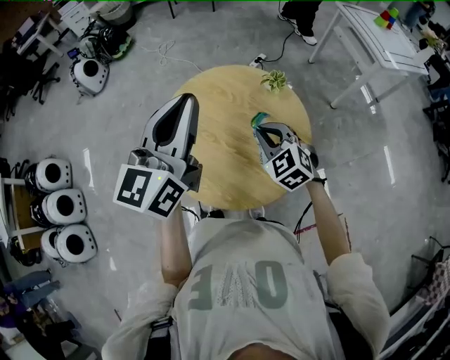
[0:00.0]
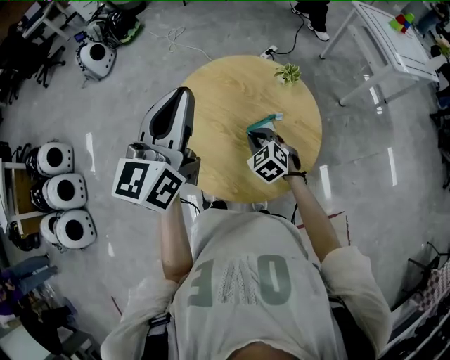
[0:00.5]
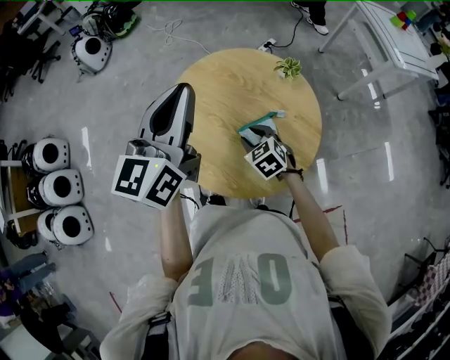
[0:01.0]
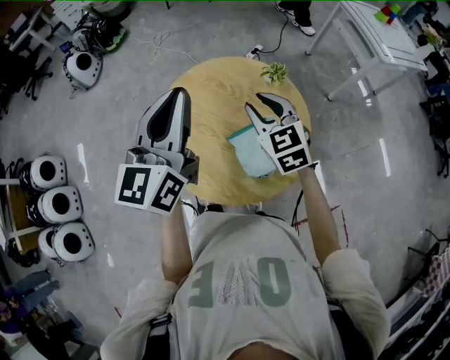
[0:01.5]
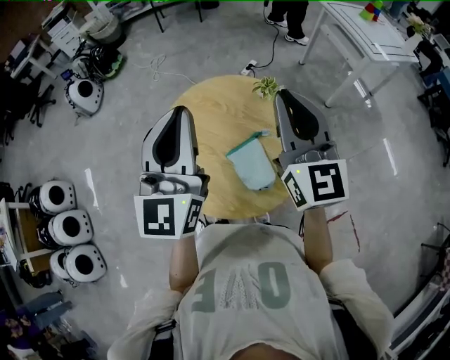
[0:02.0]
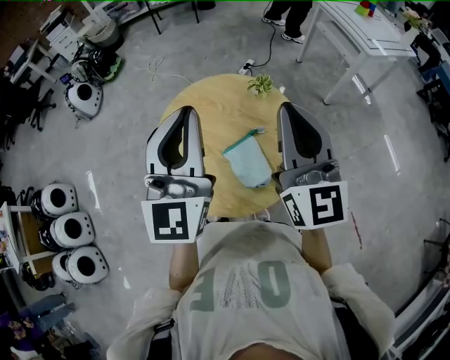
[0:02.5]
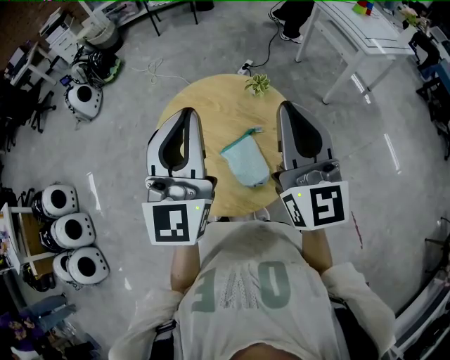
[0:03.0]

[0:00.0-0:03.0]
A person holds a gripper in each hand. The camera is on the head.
0:00.0 to 0:01.5: The right gripper shifts about 5 cm forward, travels downward and back again, approximately 15 cm each way, changes its angle by roughly 20 degrees, and opens up.
0:01.5 to 0:03.0: The left gripper goes some 10 cm to the right and upward, and changes its angle by roughly 20 degrees. Meanwhile the right gripper is displaced upward, backward and to the right by about 25 cm, tips its fingers upward by some 40 degrees, and closes.

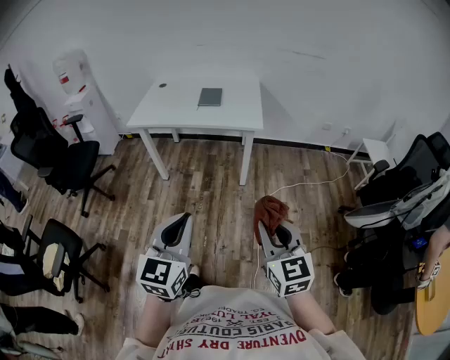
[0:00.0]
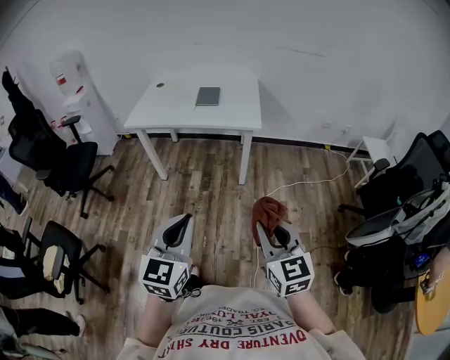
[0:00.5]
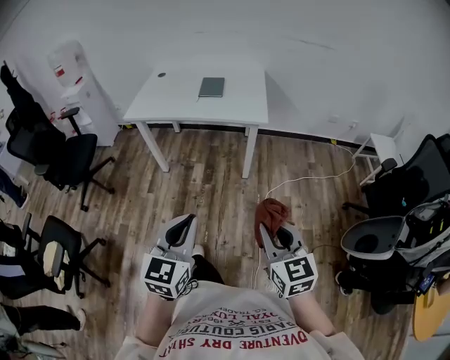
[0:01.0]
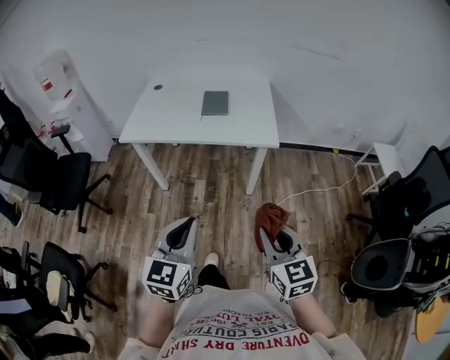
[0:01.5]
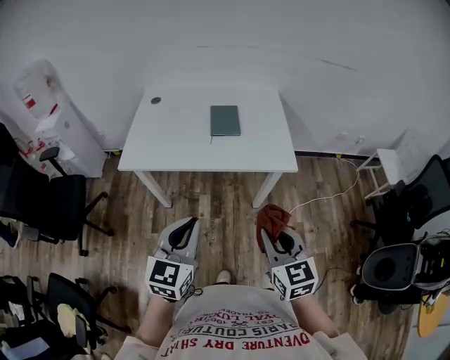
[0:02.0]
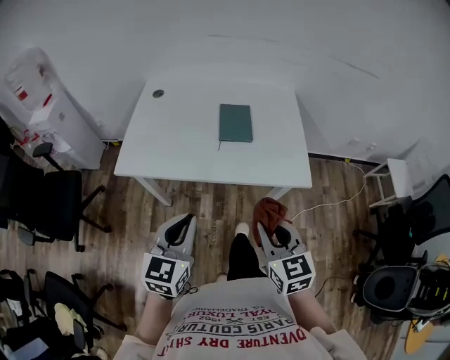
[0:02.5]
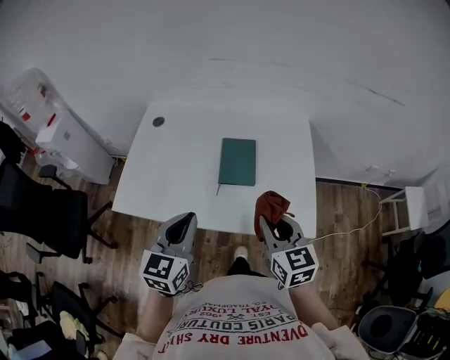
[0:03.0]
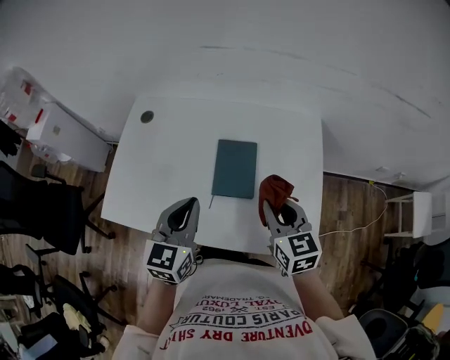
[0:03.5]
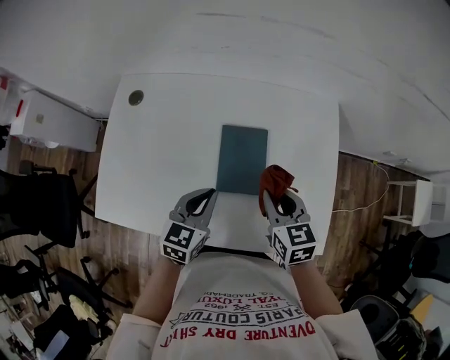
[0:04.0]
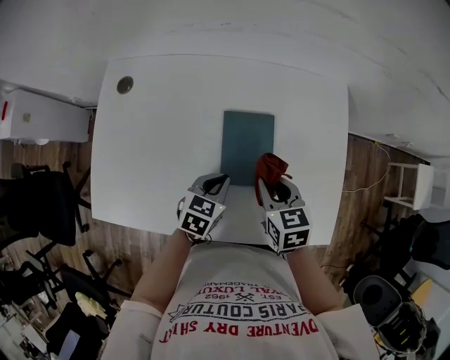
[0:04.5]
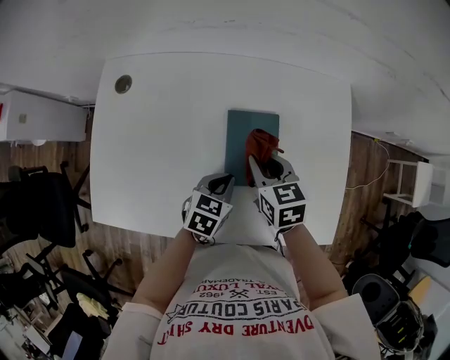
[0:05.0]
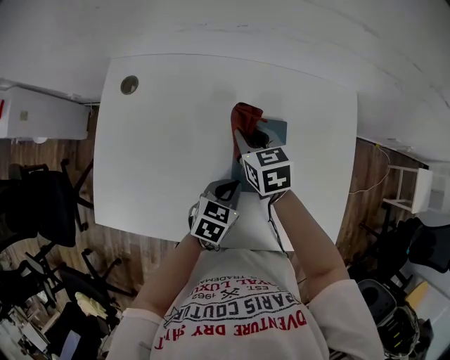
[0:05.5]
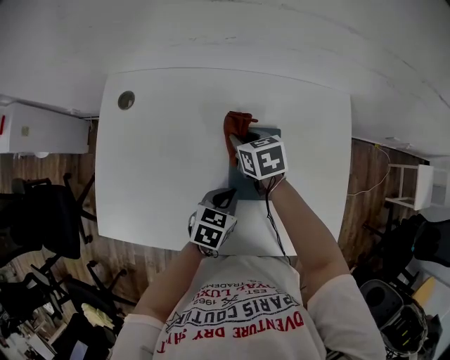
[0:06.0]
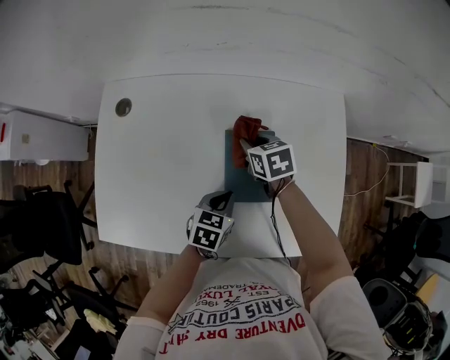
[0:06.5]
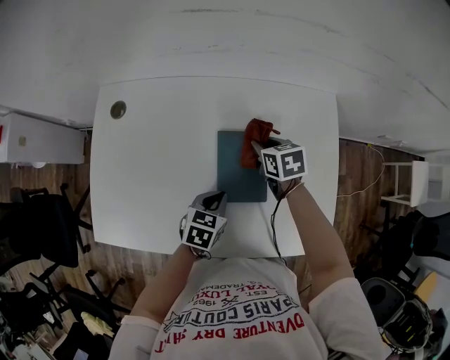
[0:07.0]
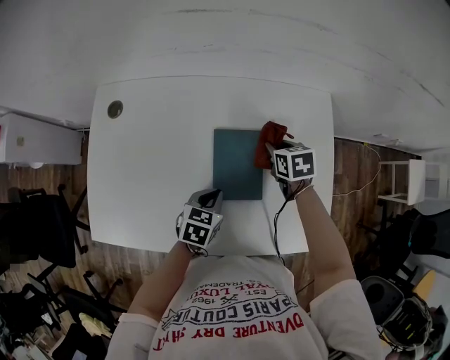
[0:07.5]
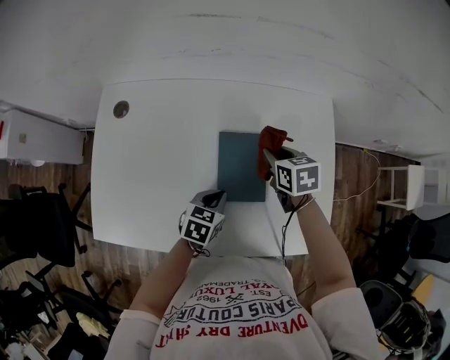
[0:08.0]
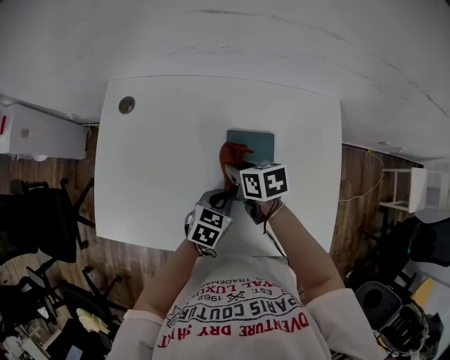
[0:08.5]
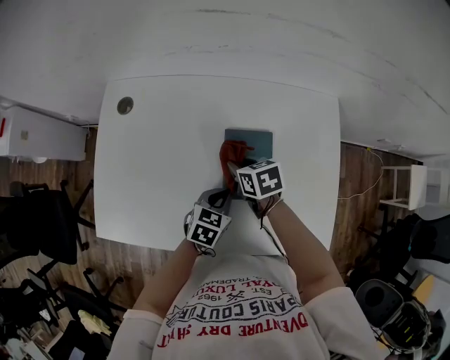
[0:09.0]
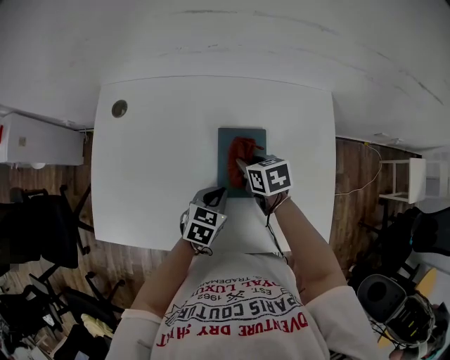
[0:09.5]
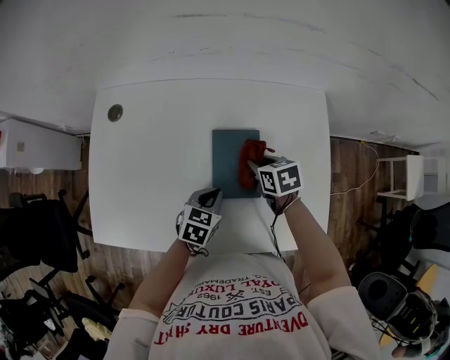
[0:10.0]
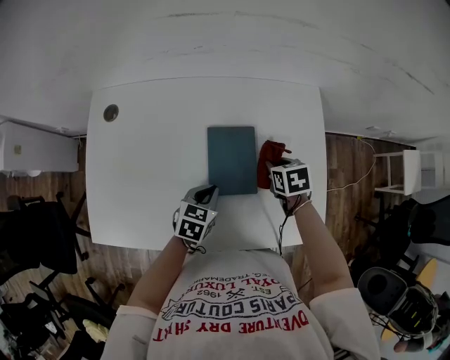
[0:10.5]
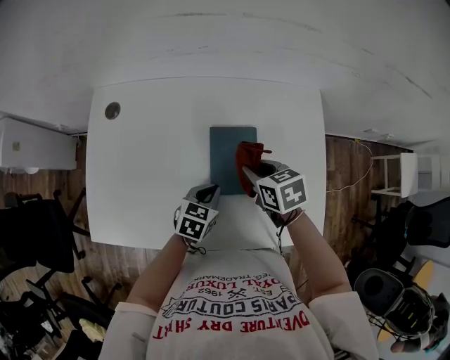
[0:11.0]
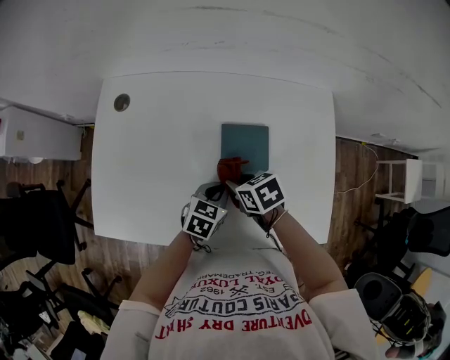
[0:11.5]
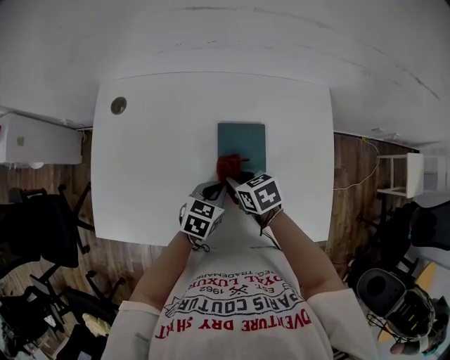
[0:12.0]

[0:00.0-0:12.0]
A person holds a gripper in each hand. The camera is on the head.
0:00.0 to 0:02.0: The two grippers travel together, forward and to the left, approximately 40 cm.
0:02.0 to 0:04.0: Both grippers are carried forward, approximately 50 cm.
0:04.0 to 0:06.0: The left gripper is displaced downward by about 10 cm, and changes its angle by approximately 20 degrees, while the right gripper moves forward, to the left and downward, about 25 cm.
0:06.0 to 0:08.0: The right gripper goes approximately 15 cm to the right.
0:08.0 to 0:10.0: The right gripper reaches roughly 15 cm to the left, then returns.
0:10.0 to 0:12.0: The right gripper goes about 10 cm to the left and backward.

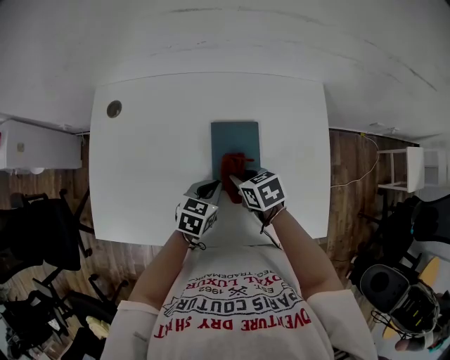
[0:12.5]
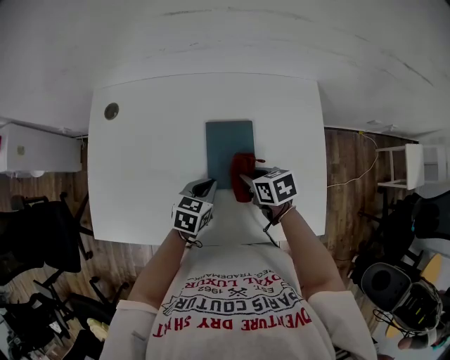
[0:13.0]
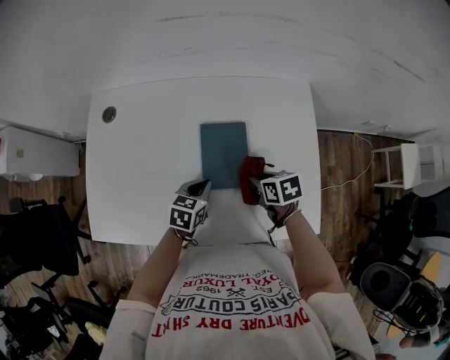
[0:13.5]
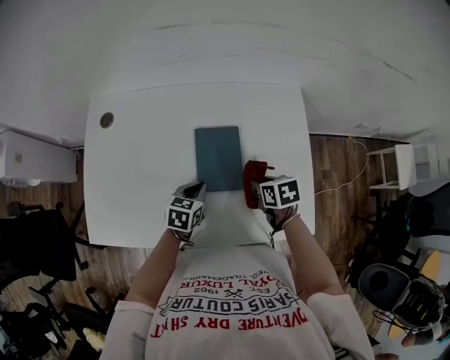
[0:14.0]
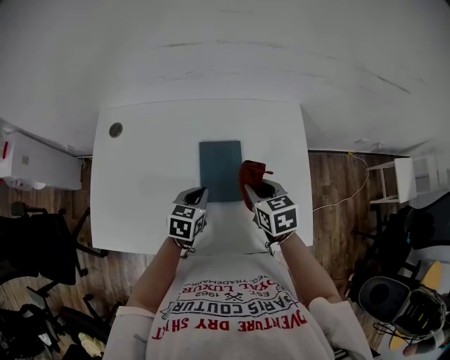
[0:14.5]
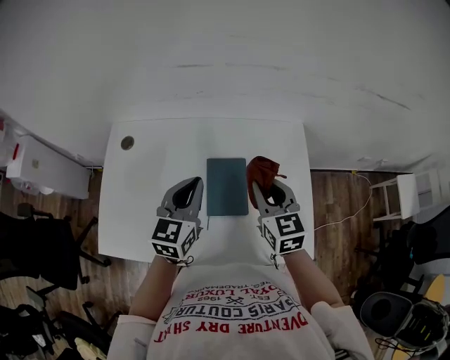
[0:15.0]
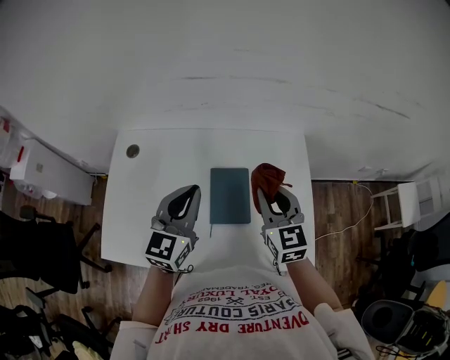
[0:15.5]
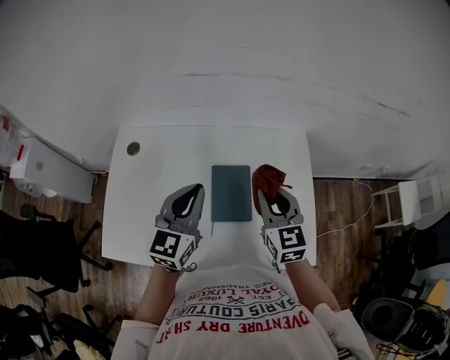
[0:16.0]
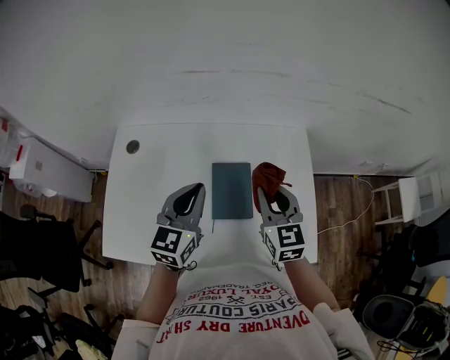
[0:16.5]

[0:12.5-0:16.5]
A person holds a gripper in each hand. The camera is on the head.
0:12.5 to 0:14.5: The right gripper moves upward and to the right, some 15 cm, and swivels some 20 degrees.
0:14.5 to 0:16.5: The right gripper is displaced upward by about 15 cm, and changes its angle by some 30 degrees. Meanwhile the left gripper is displaced upward by about 20 cm, and turns by about 30 degrees.

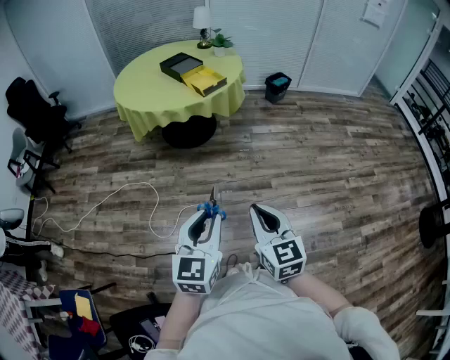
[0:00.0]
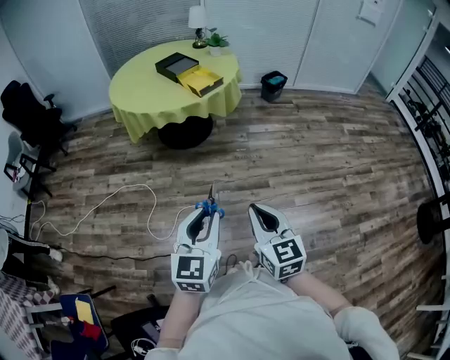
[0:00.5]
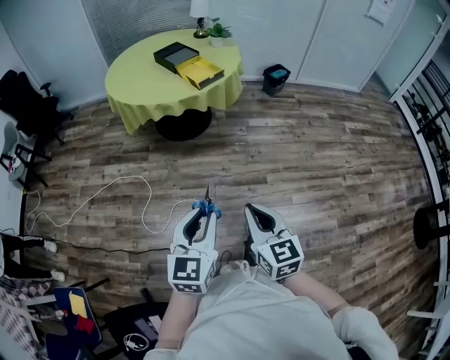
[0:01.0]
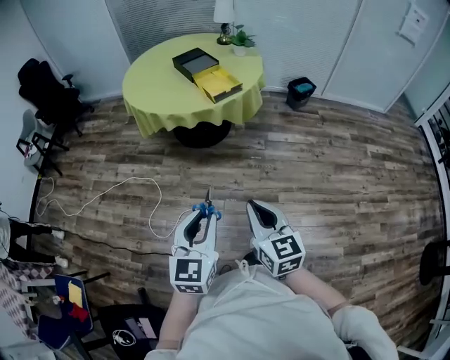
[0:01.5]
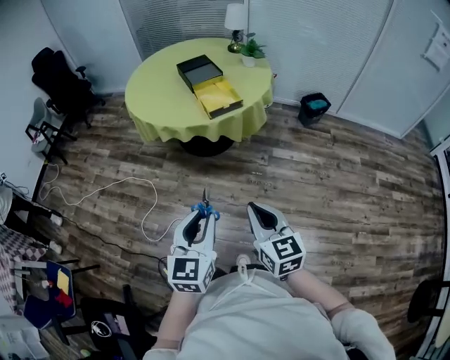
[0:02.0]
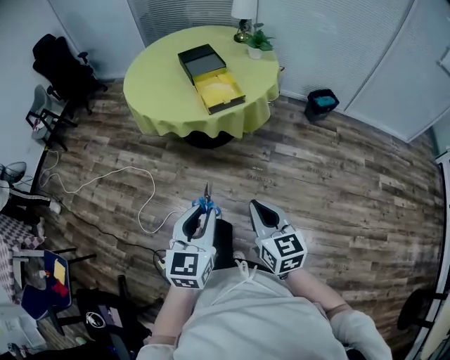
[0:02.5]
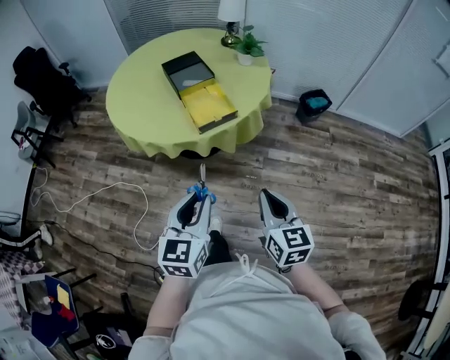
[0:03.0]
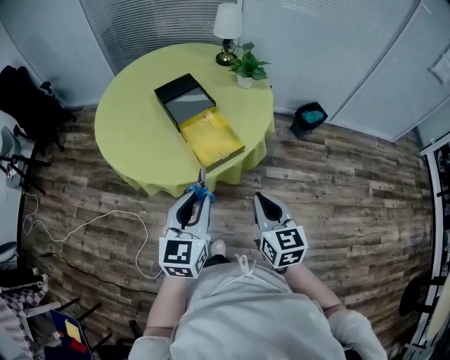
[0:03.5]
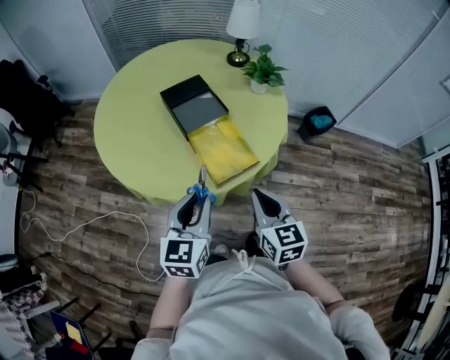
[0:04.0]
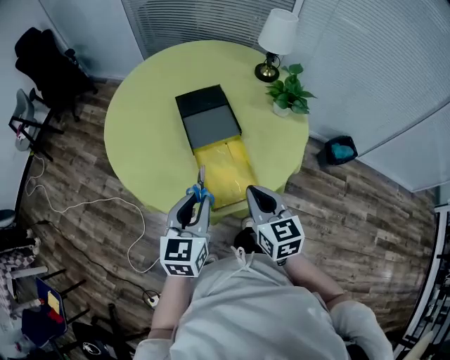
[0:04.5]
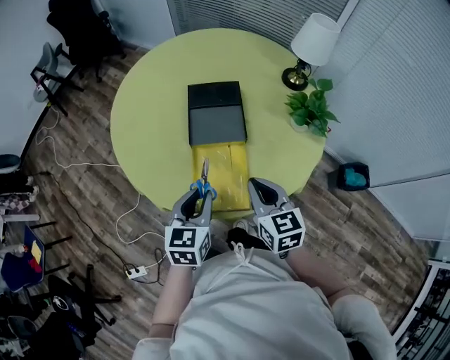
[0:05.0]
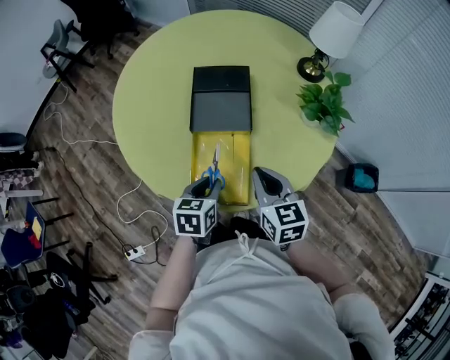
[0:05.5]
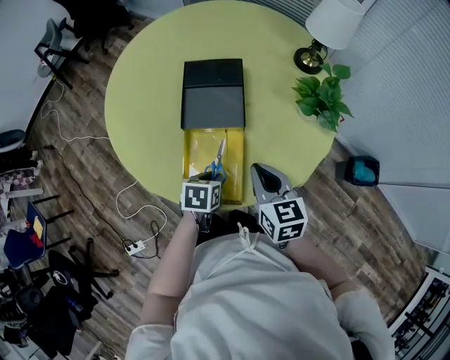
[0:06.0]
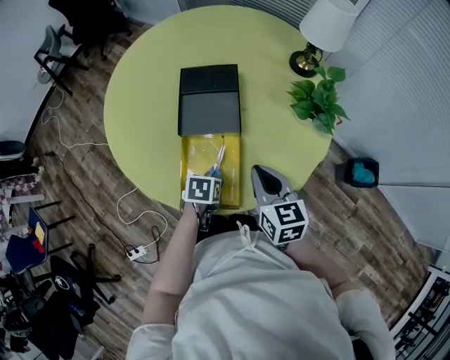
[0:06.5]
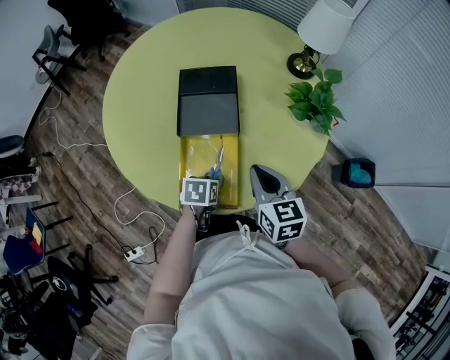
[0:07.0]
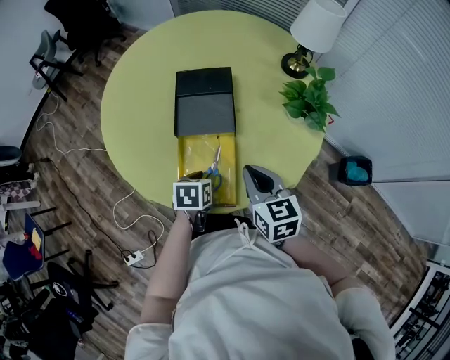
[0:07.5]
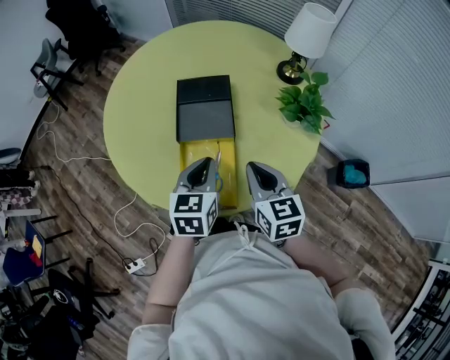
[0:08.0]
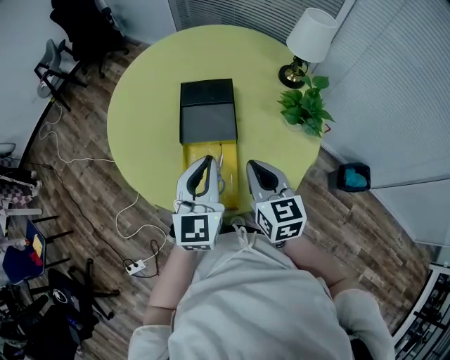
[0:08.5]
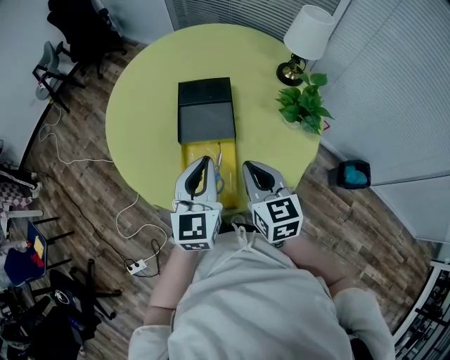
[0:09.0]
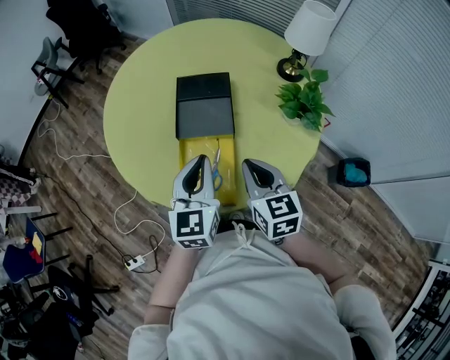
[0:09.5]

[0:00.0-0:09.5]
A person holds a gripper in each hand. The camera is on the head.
0:00.0 to 0:02.0: The grippers both shift forward and to the right by some 30 cm.
0:02.0 to 0:04.0: The two grippers travel together, forward, about 50 cm.
0:04.0 to 0:05.5: The left gripper changes place by approximately 25 cm, and turns by some 40 degrees, while the right gripper moves about 25 cm, and turns by approximately 30 degrees.
0:07.5 to 0:09.5: The left gripper travels upward by roughly 20 cm, points its fingers roughly 50 degrees further upward, and closes its fingers.
